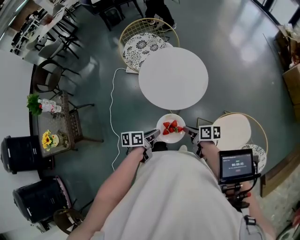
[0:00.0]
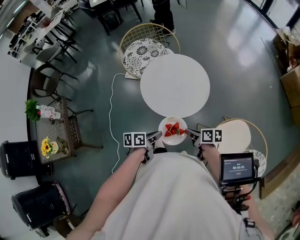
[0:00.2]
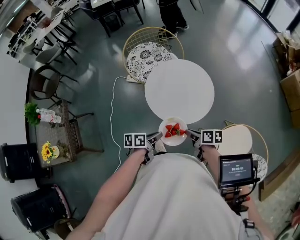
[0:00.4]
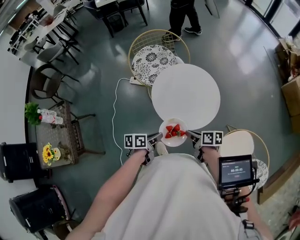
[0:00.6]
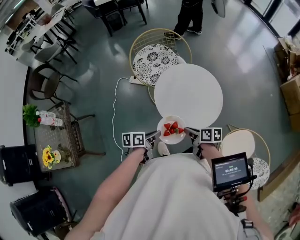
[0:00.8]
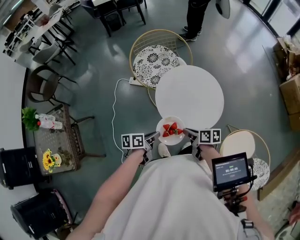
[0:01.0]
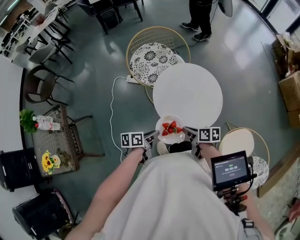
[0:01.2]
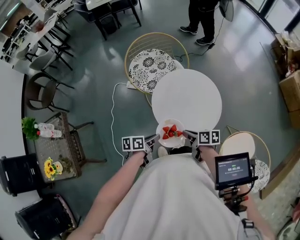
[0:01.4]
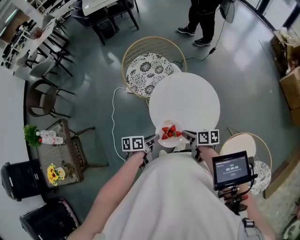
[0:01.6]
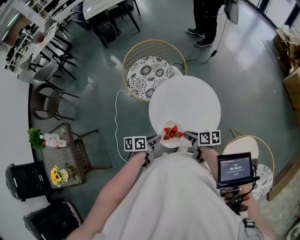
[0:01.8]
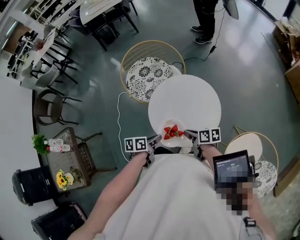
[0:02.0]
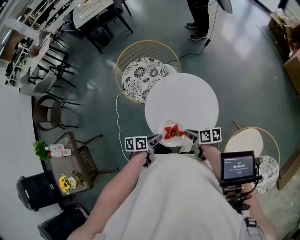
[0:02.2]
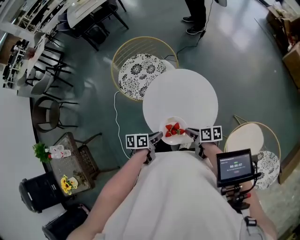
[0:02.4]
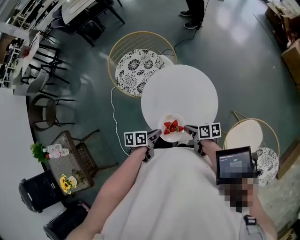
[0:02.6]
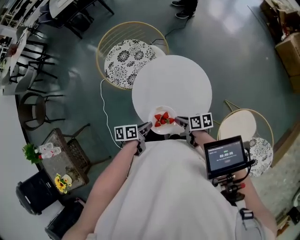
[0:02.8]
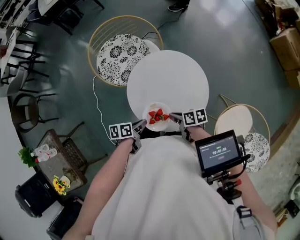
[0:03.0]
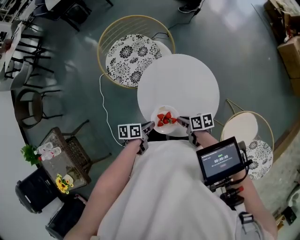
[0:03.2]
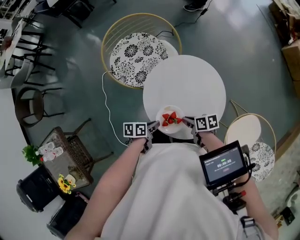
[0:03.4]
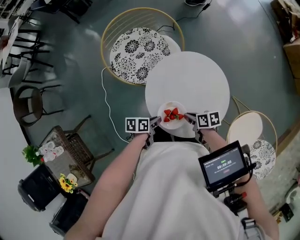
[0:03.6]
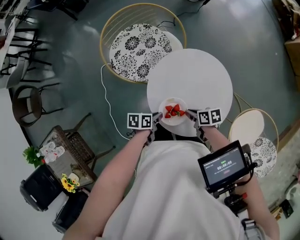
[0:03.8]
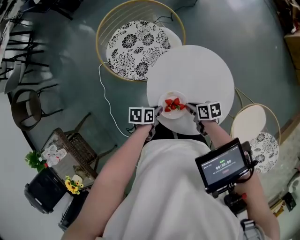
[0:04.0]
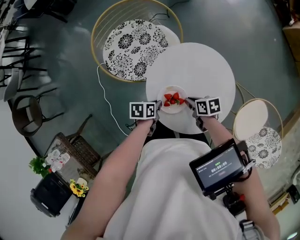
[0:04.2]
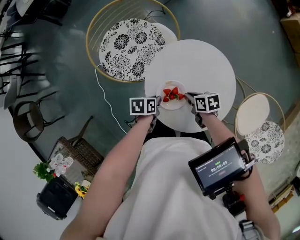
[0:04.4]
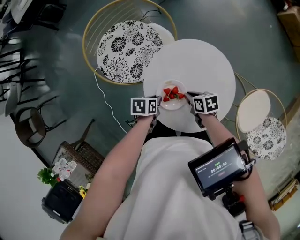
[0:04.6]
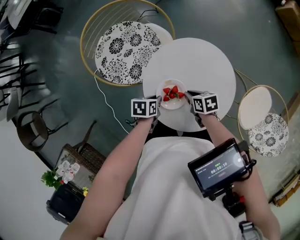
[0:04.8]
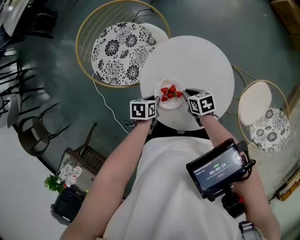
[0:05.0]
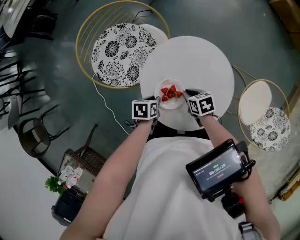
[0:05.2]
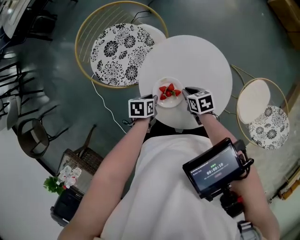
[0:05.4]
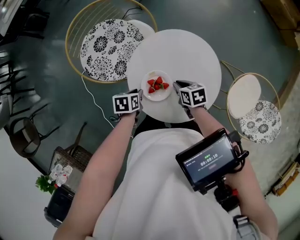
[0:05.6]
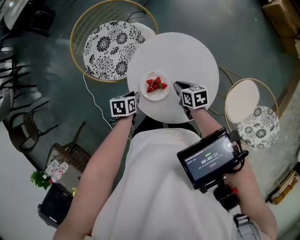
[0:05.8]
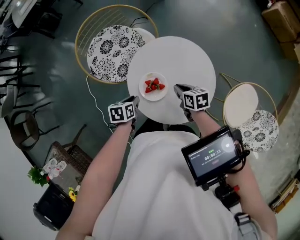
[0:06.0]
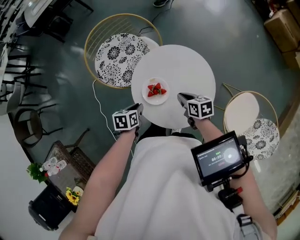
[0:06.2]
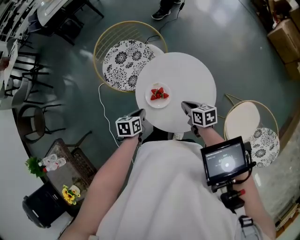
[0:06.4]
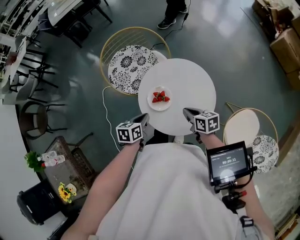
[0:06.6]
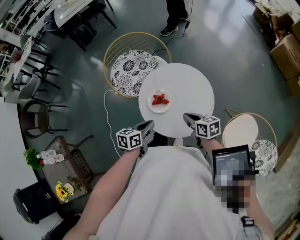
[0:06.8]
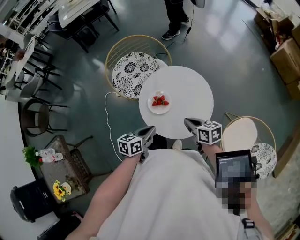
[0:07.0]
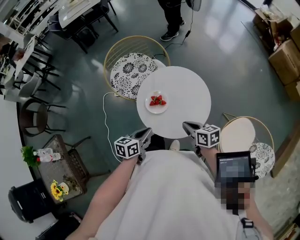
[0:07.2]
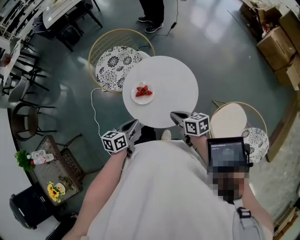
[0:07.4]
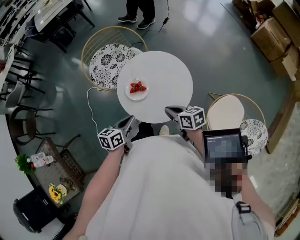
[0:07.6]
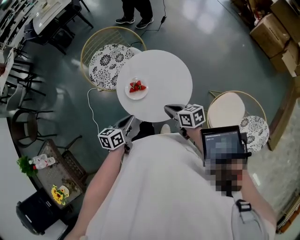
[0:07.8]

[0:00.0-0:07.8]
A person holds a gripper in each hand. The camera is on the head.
0:00.0 to 0:01.6: Both grippers move forward and to the left, about 20 cm.
0:01.6 to 0:03.2: The left gripper ends up approximately 10 cm from where it was. Meanwhile the right gripper moves downward, roughly 10 cm.
0:03.2 to 0:04.6: The left gripper ends up some 15 cm from where it was, and rotates some 30 degrees. Meanwhile the right gripper changes place by approximately 15 cm.
0:04.6 to 0:06.2: Both grippers travel together upward, roughly 10 cm.
0:06.2 to 0:07.8: The left gripper travels backward, upward and to the right by approximately 20 cm, and swivels roughly 30 degrees, while the right gripper travels backward and upward by roughly 15 cm.

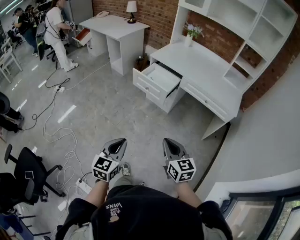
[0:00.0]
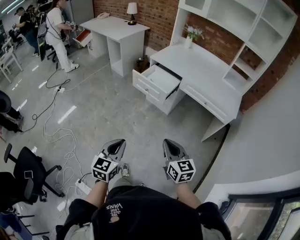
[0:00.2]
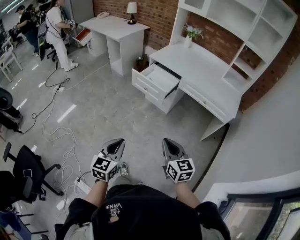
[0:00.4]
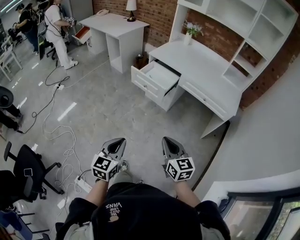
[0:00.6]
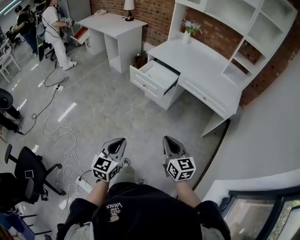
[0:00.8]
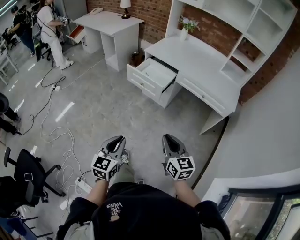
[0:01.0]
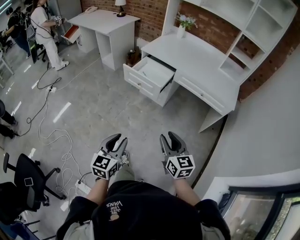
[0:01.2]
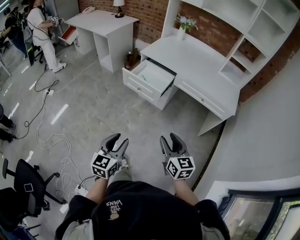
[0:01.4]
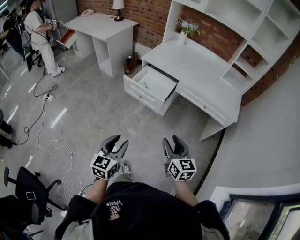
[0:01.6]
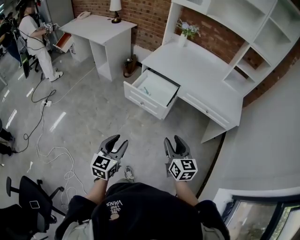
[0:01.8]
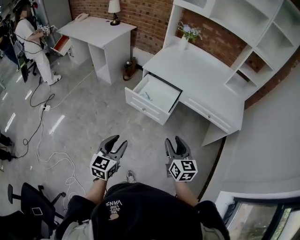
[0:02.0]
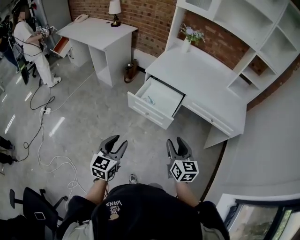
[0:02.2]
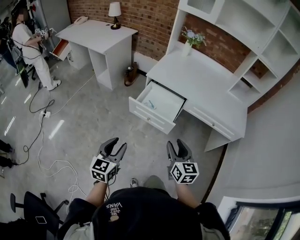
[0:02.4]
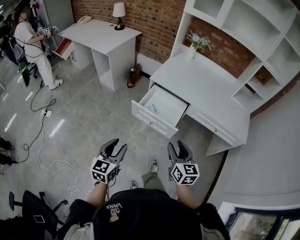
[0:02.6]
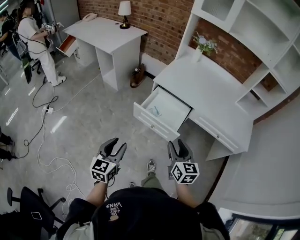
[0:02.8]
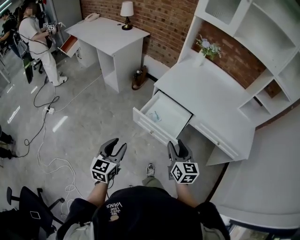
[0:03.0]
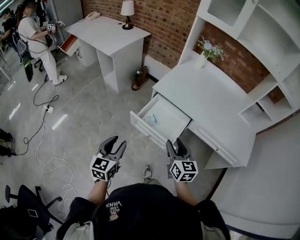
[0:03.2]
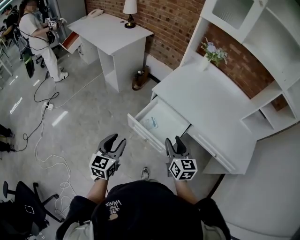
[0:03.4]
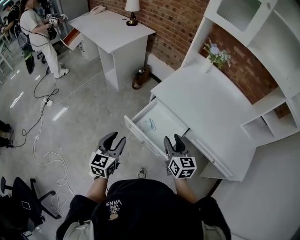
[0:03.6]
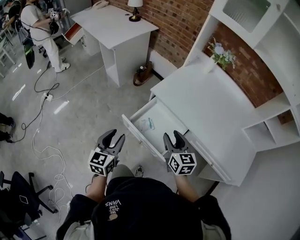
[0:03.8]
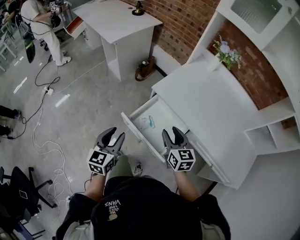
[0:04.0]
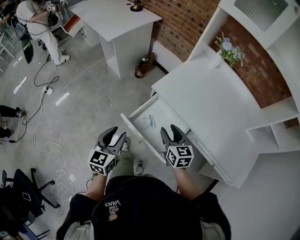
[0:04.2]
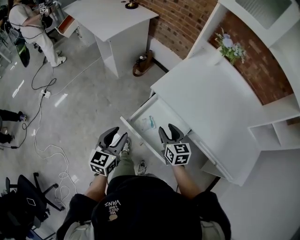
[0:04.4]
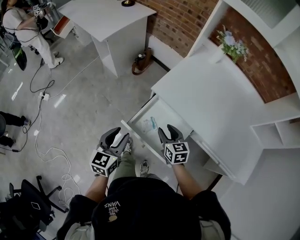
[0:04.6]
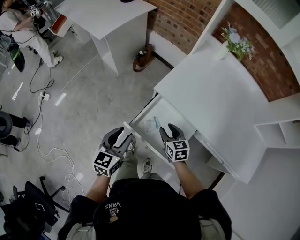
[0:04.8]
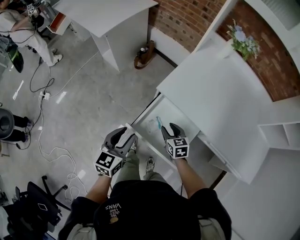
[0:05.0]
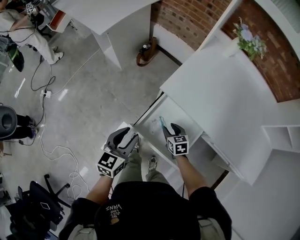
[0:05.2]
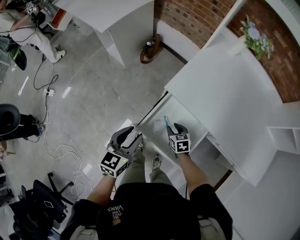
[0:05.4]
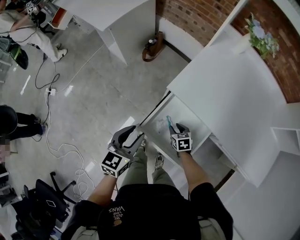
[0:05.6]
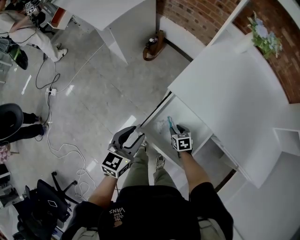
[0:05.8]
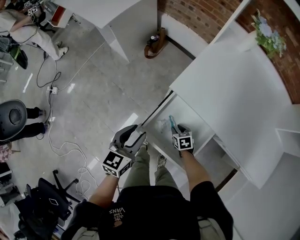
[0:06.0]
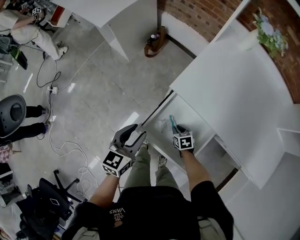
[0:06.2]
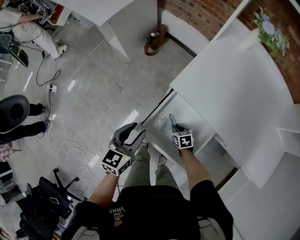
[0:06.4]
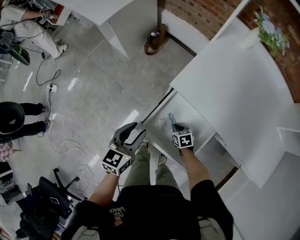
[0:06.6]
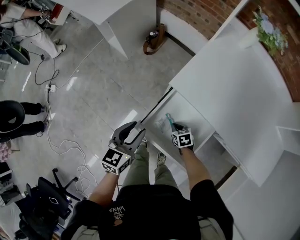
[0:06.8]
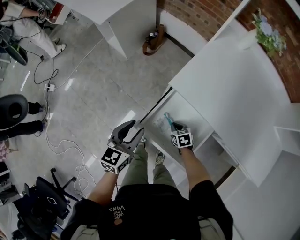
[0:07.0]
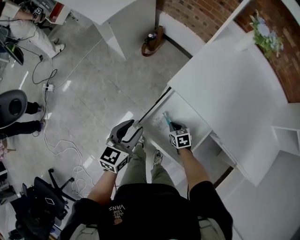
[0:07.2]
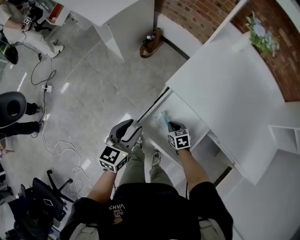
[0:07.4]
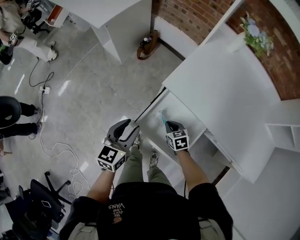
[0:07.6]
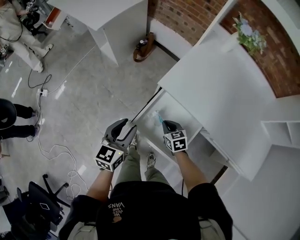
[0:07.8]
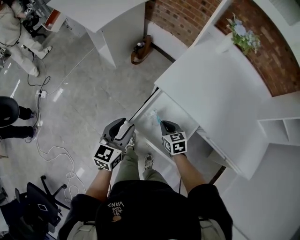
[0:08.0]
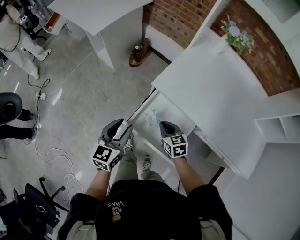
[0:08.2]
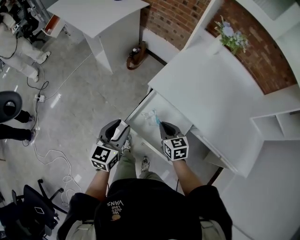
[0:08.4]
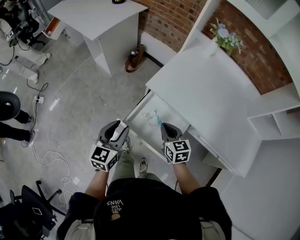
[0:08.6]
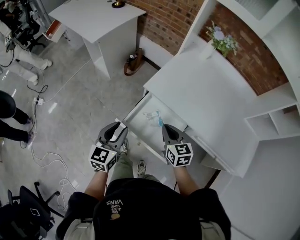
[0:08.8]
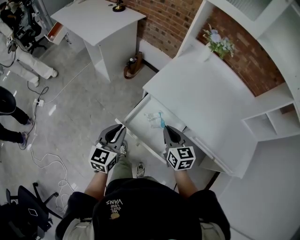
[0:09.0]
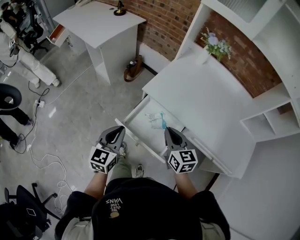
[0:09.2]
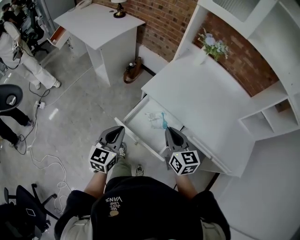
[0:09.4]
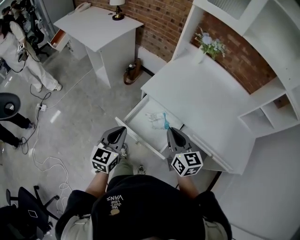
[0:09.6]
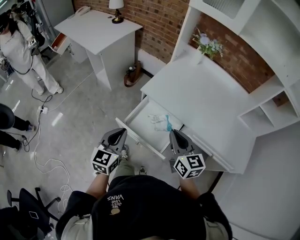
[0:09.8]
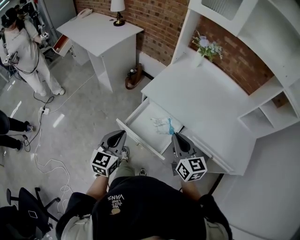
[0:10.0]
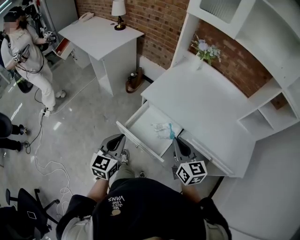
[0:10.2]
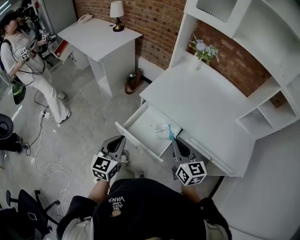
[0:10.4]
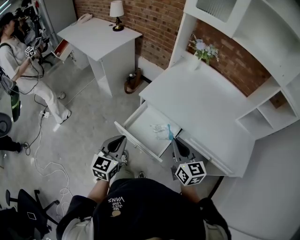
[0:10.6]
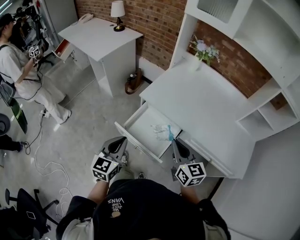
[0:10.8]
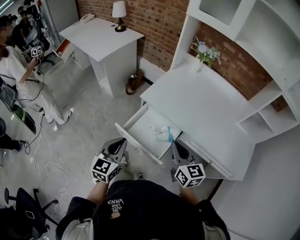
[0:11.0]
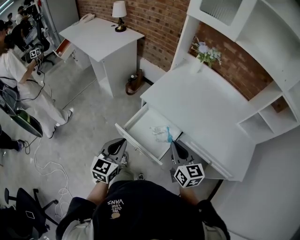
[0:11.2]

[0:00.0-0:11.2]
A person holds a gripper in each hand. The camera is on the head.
0:00.0 to 0:01.6: Both grippers travel together forward, roughly 15 cm. The left gripper opens up. Meanwhile the right gripper opens.
0:01.6 to 0:03.2: Both grippers move forward, approximately 35 cm.
0:03.2 to 0:04.8: The right gripper travels forward and downward by about 30 cm, and turns by approximately 20 degrees. The left gripper heads forward, covering roughly 20 cm.
0:04.8 to 0:06.4: The left gripper shifts roughly 10 cm forward and downward. Meanwhile the right gripper is displaced downward by approximately 25 cm, swivels roughly 30 degrees, and closes.
0:06.4 to 0:08.0: The right gripper travels upward by some 15 cm; the left gripper is displaced upward by about 5 cm.
0:08.0 to 0:09.6: The left gripper travels backward and upward by some 15 cm, and closes. The right gripper shifts roughly 30 cm upward and backward, and rotates some 30 degrees.
0:09.6 to 0:11.2: The right gripper changes place by approximately 5 cm.

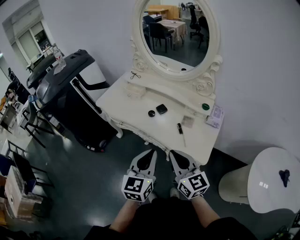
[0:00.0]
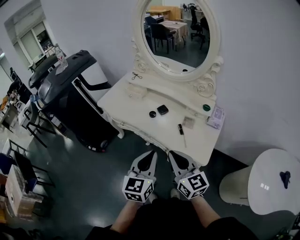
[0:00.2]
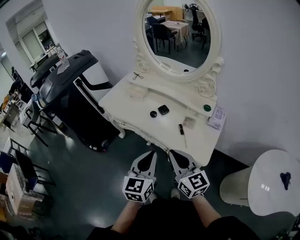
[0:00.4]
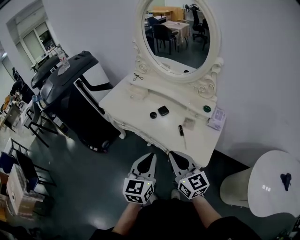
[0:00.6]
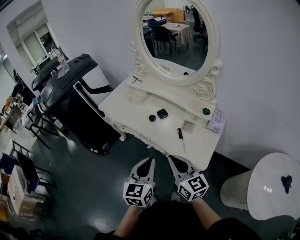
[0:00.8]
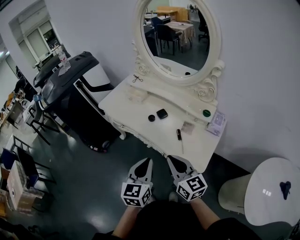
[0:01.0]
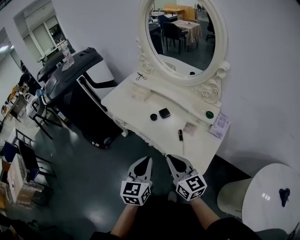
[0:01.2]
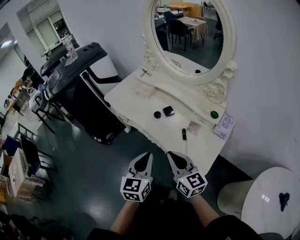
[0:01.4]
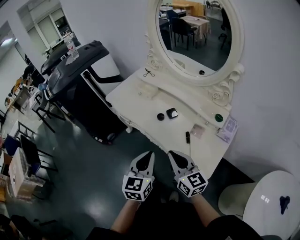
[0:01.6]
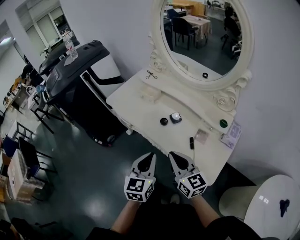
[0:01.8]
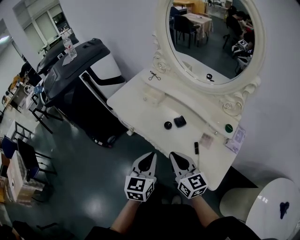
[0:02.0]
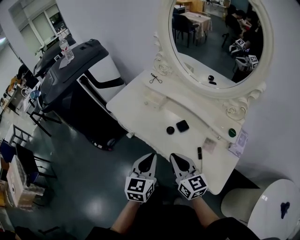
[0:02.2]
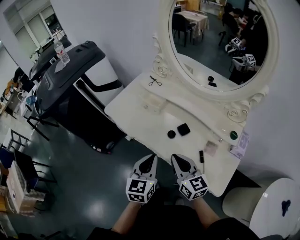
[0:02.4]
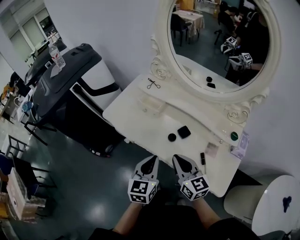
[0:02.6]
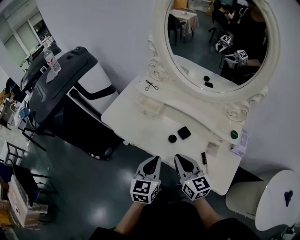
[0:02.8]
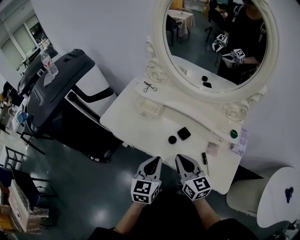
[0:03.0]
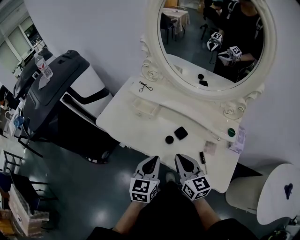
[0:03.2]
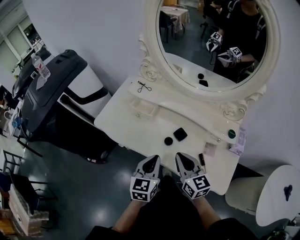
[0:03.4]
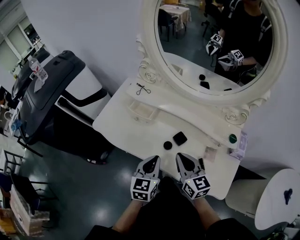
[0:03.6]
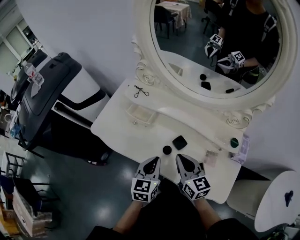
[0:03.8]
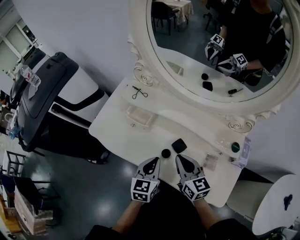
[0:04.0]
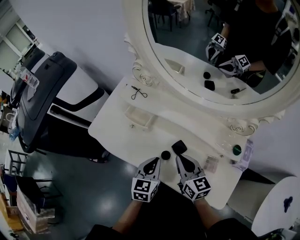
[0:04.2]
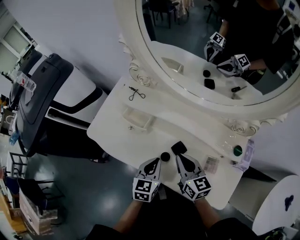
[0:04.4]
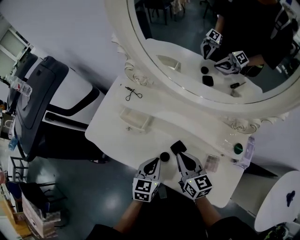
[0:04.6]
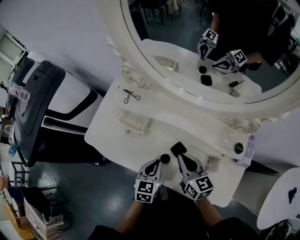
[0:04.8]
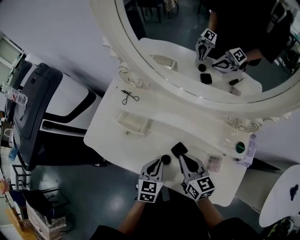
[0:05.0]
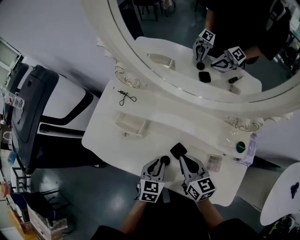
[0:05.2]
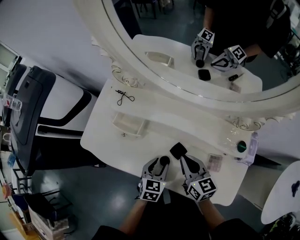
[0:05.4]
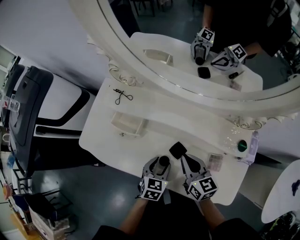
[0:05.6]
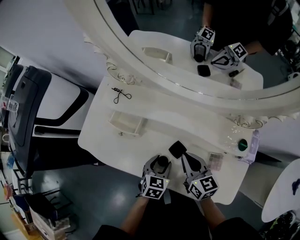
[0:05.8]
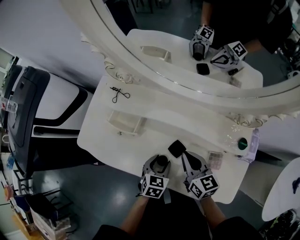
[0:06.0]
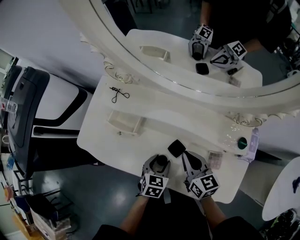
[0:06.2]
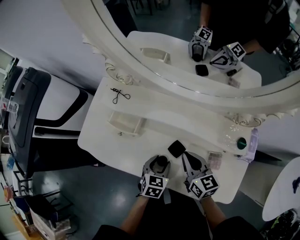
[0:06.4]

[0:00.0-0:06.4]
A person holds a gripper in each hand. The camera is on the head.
0:00.0 to 0:01.6: The grippers both shift forward by roughly 5 cm.
0:01.6 to 0:03.2: The grippers both shift forward by about 20 cm.
0:03.2 to 0:04.8: Both grippers travel together forward and downward, roughly 15 cm.
0:04.8 to 0:06.4: The left gripper shifts about 10 cm downward, and opens up; the right gripper changes place by roughly 5 cm.
